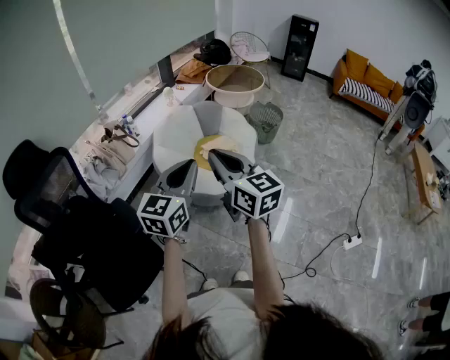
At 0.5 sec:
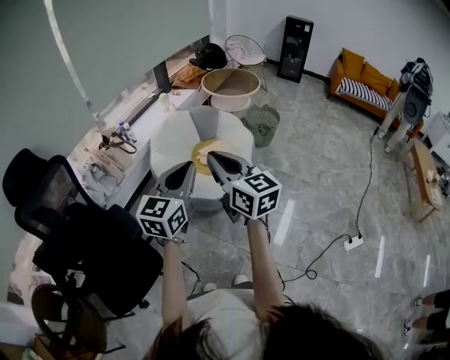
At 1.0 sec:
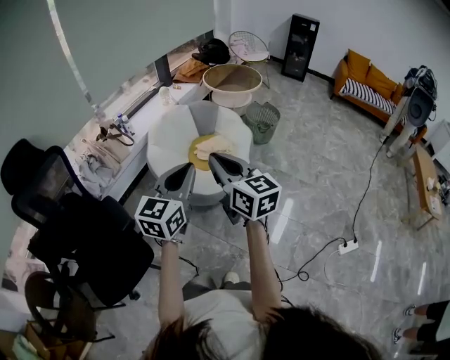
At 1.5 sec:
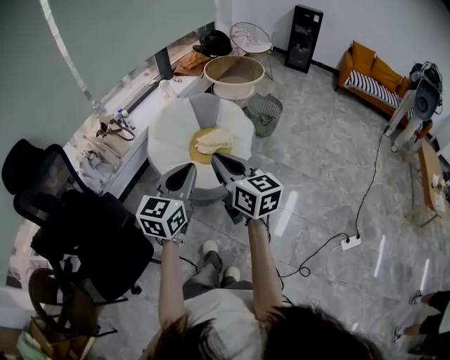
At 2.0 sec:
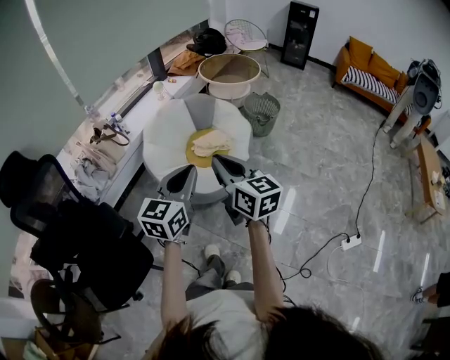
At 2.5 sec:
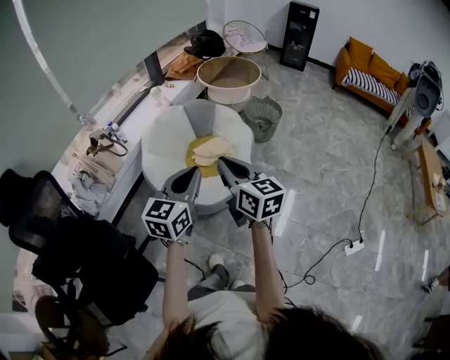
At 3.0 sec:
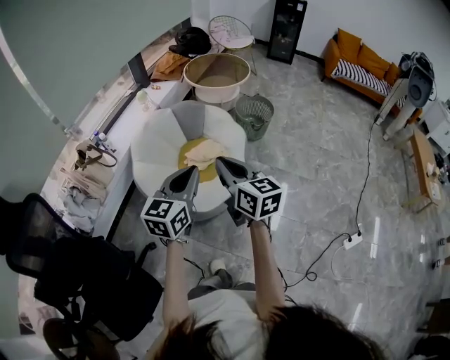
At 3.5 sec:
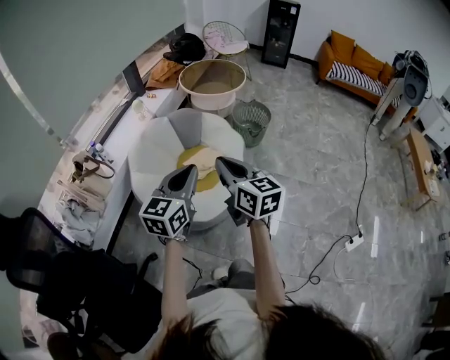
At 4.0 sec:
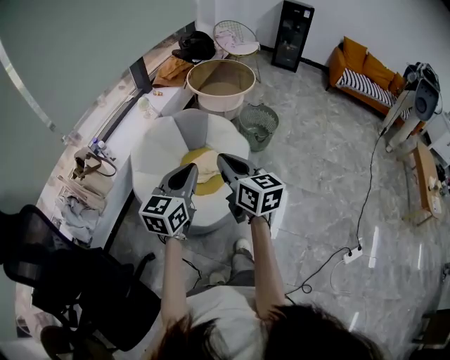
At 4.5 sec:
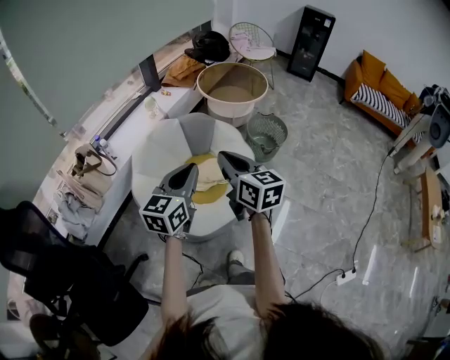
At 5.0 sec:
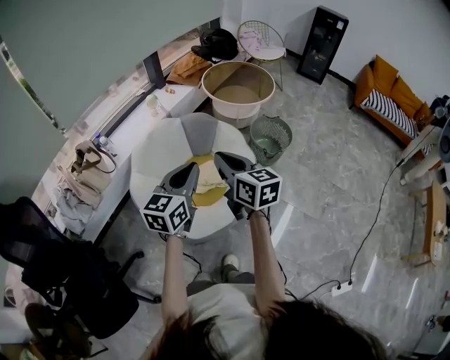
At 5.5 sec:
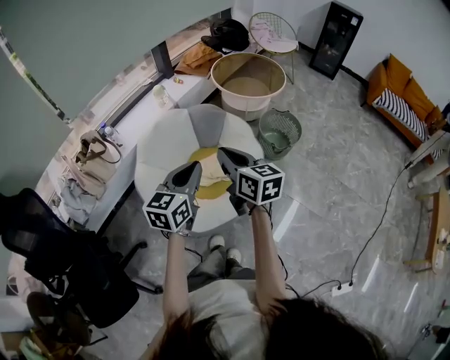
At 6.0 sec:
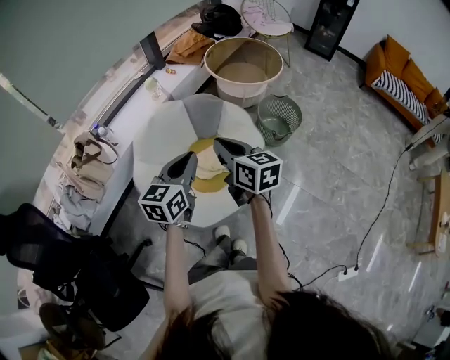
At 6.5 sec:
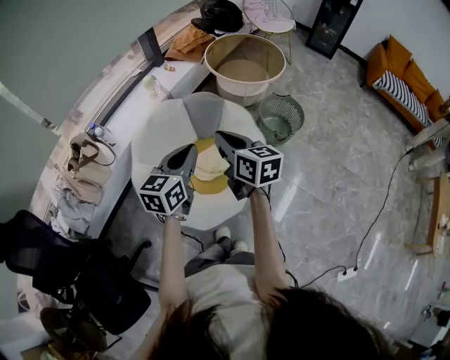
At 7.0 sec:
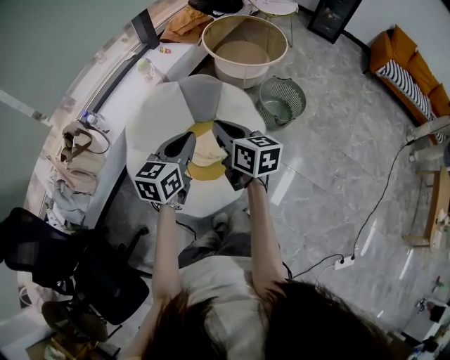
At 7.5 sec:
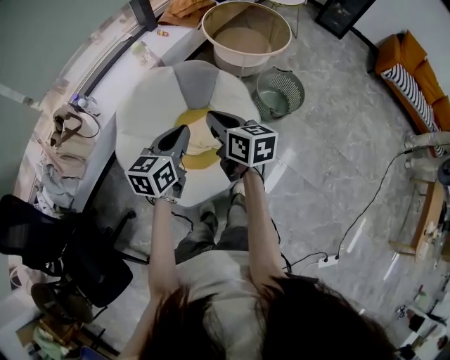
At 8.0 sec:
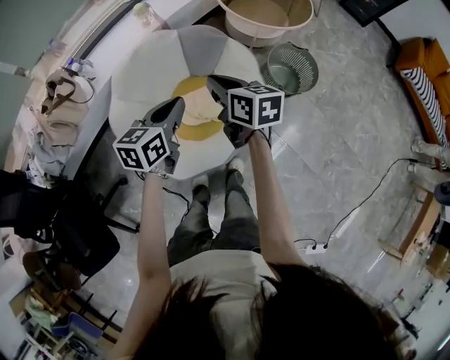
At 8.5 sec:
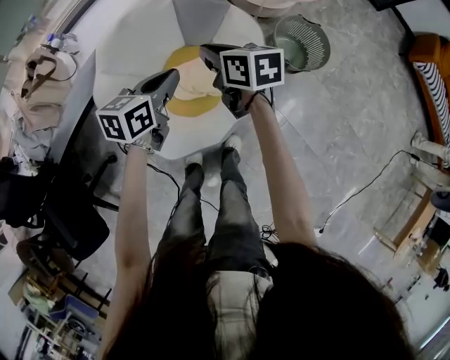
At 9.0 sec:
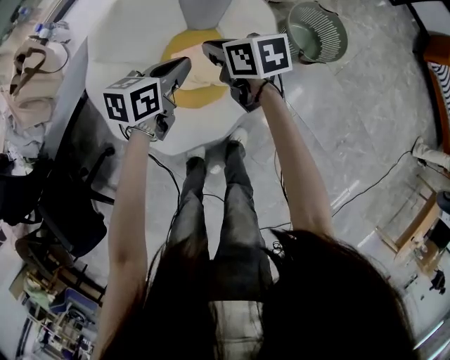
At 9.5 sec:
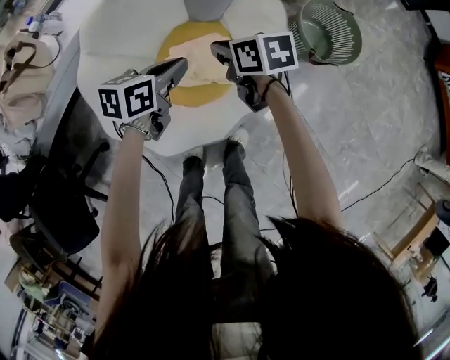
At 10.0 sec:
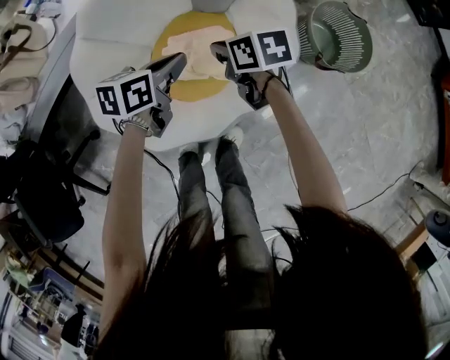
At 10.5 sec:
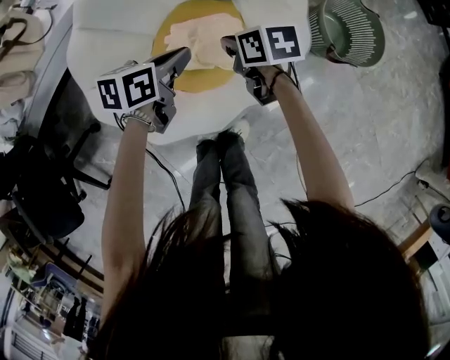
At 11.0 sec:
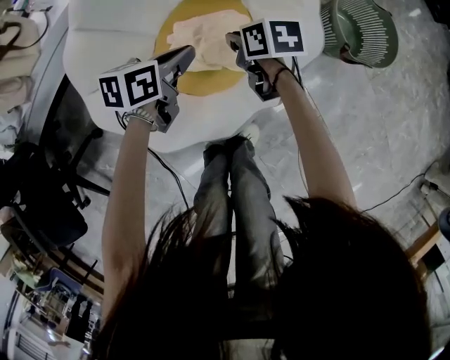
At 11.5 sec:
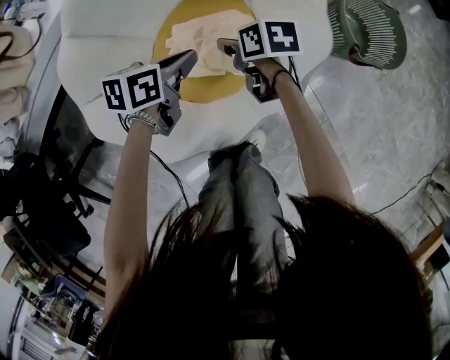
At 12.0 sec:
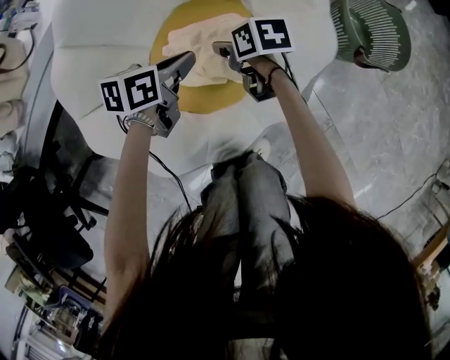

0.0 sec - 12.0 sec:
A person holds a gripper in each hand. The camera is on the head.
0.0 sec - 2.0 sec: The right gripper goes some 15 cm to the right, downward and forward. The left gripper goes approximately 10 cm to the right.
2.0 sec - 4.0 sec: The two grippers go about 25 cm forward.
4.0 sec - 6.0 sec: The grippers both shift forward by roughly 20 cm.
6.0 sec - 8.0 sec: The grippers both shift forward and downward by approximately 15 cm.
8.0 sec - 10.0 sec: Both grippers move downward, some 30 cm. The right gripper turns by some 30 degrees. The left gripper turns by some 20 degrees.
10.0 sec - 12.0 sec: The grippers both shift downward by approximately 20 cm. The right gripper opens up.

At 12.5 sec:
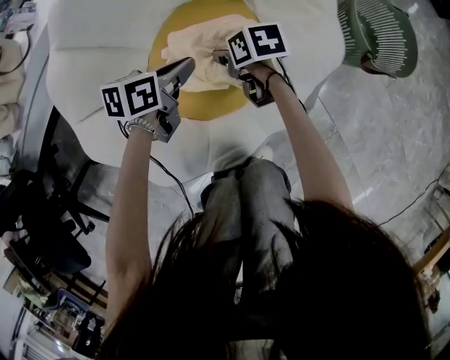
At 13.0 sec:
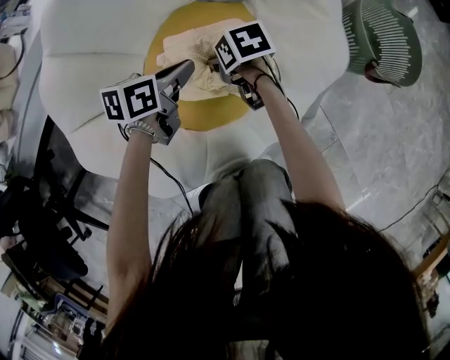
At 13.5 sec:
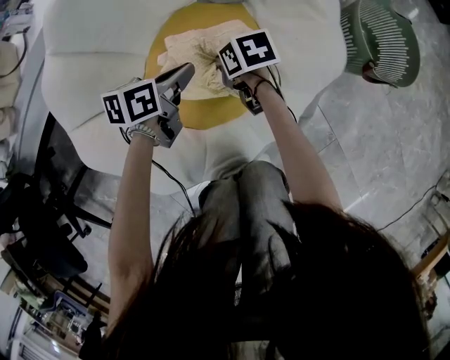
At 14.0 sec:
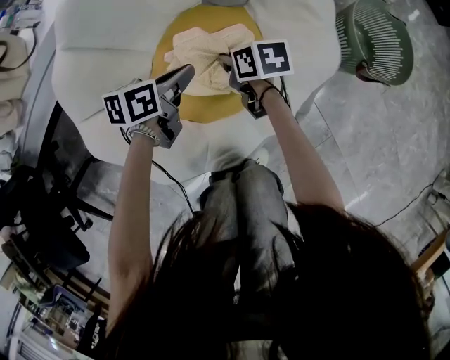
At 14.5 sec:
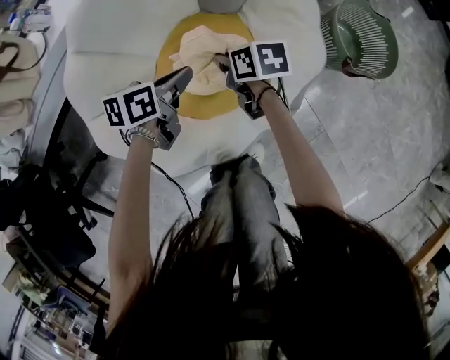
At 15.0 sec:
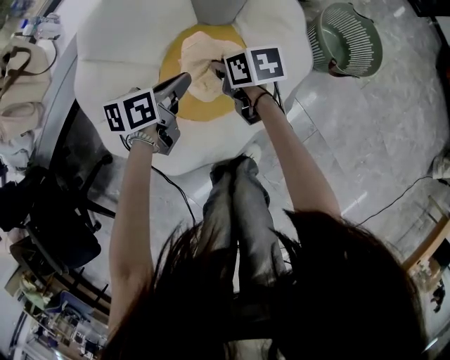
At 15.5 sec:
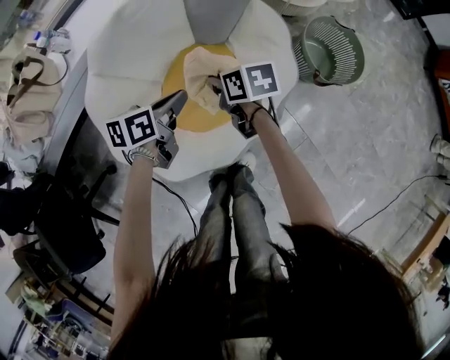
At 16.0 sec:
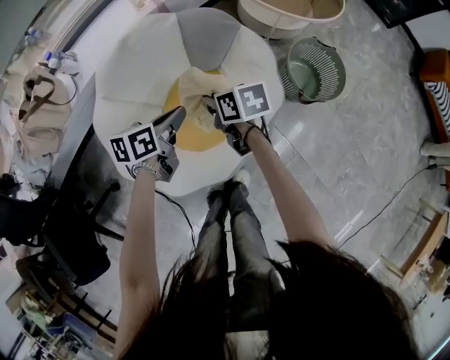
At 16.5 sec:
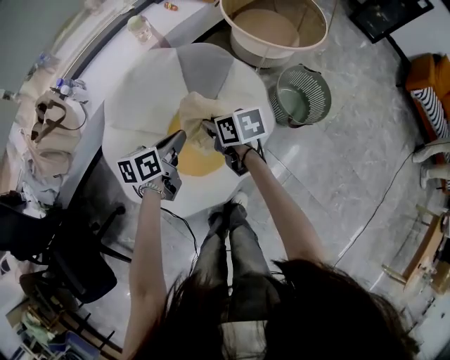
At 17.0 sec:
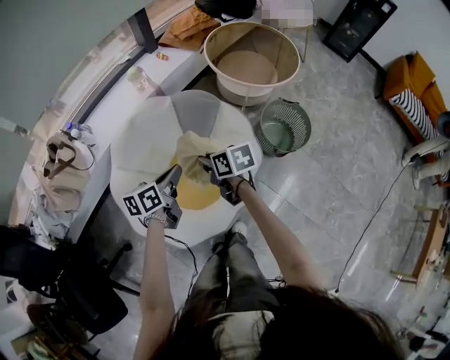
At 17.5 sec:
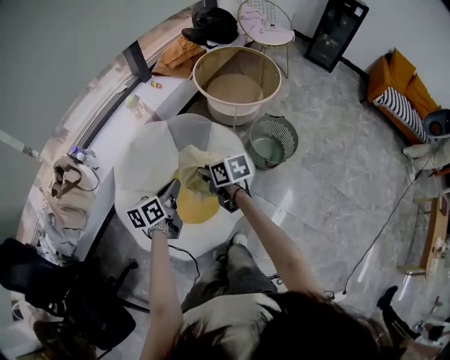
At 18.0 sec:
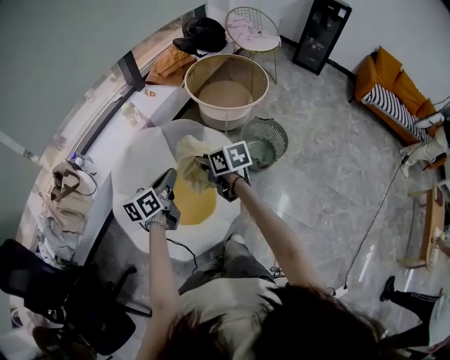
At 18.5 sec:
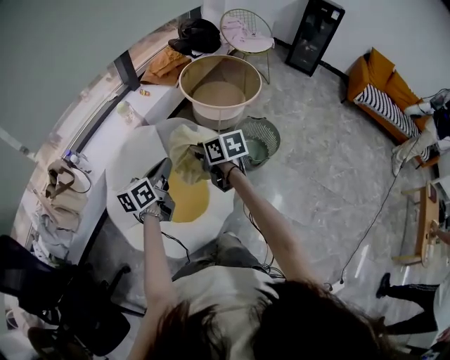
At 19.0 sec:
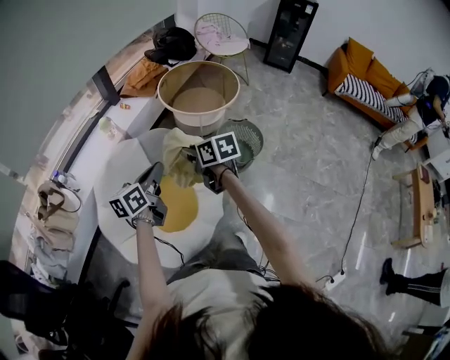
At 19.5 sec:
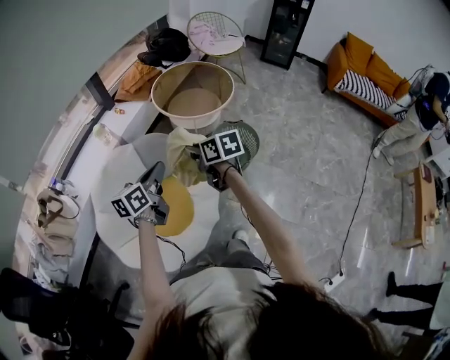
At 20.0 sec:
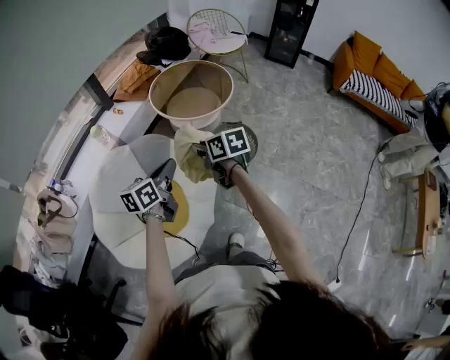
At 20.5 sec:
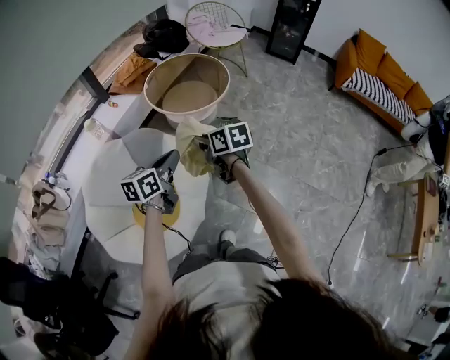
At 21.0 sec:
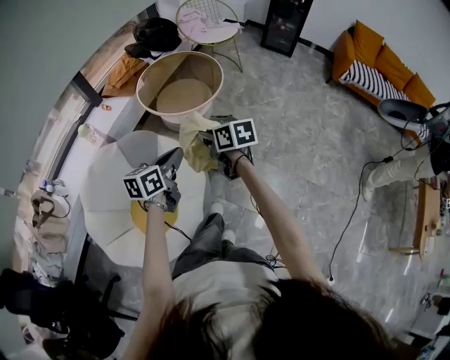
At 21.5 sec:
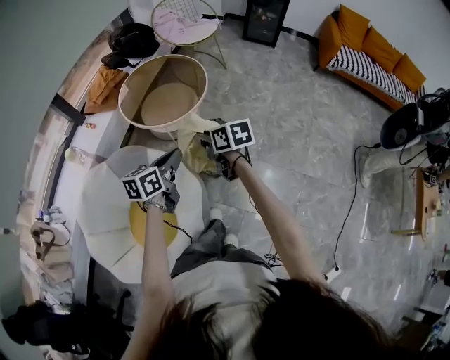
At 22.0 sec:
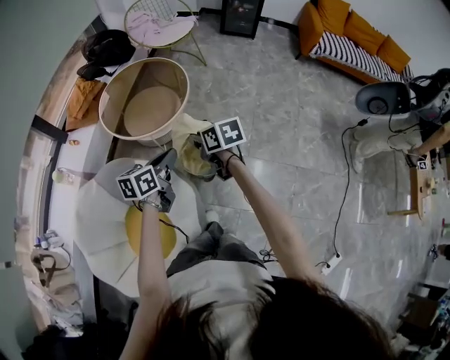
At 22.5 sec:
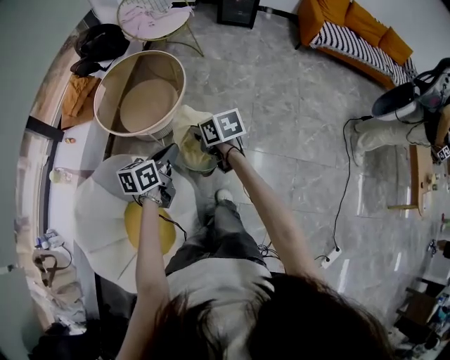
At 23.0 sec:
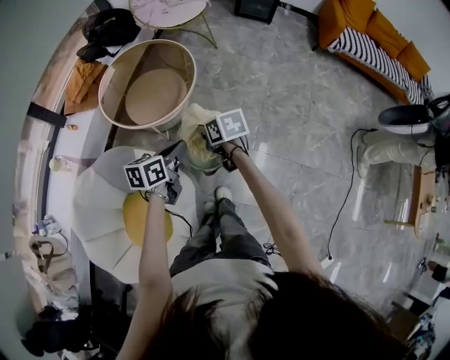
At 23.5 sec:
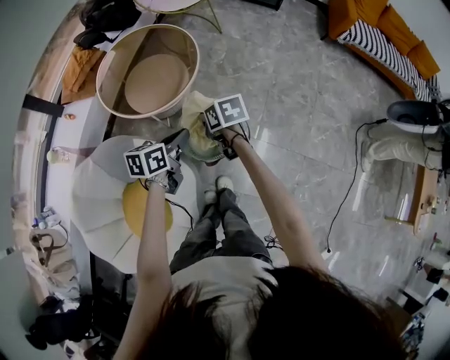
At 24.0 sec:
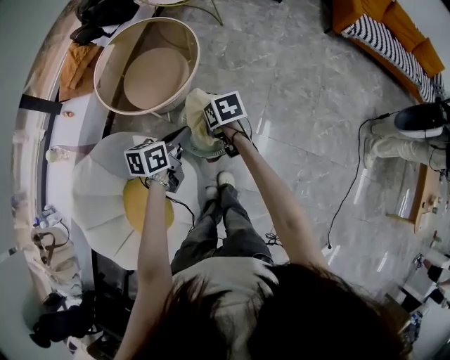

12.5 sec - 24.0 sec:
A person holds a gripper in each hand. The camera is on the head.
12.5 sec - 14.5 sec: The two grippers go about 10 cm upward. The right gripper closes.
14.5 sec - 16.5 sec: Both grippers move upward, about 25 cm.
16.5 sec - 18.5 sec: The two grippers go about 20 cm upward. The left gripper turns by roughly 20 degrees.
18.5 sec - 20.0 sec: Both grippers move to the right, about 20 cm.
20.0 sec - 22.0 sec: The left gripper is displaced forward and to the right by roughly 25 cm, and rotates approximately 20 degrees. The right gripper travels to the right and forward by roughly 25 cm.
22.0 sec - 24.0 sec: Both grippers travel together forward and downward, roughly 15 cm.

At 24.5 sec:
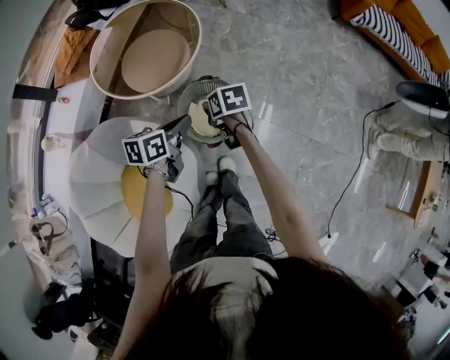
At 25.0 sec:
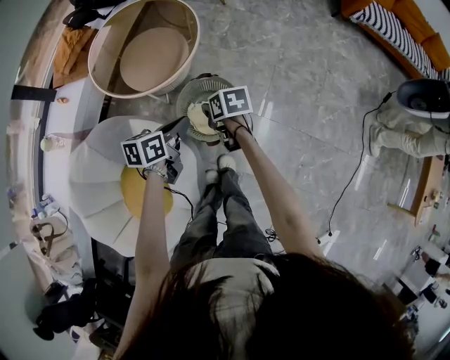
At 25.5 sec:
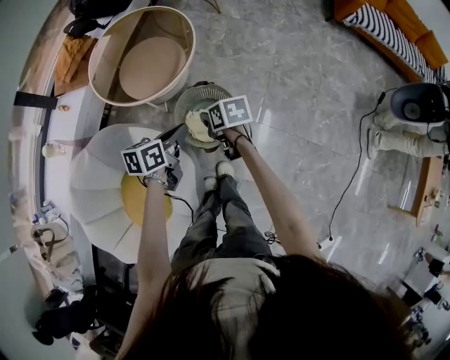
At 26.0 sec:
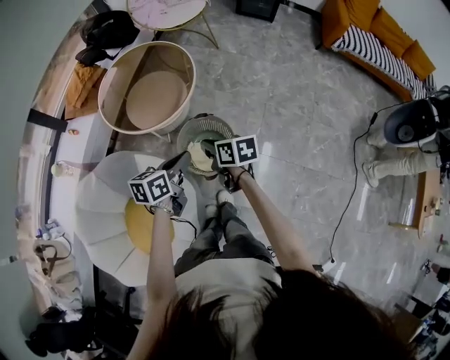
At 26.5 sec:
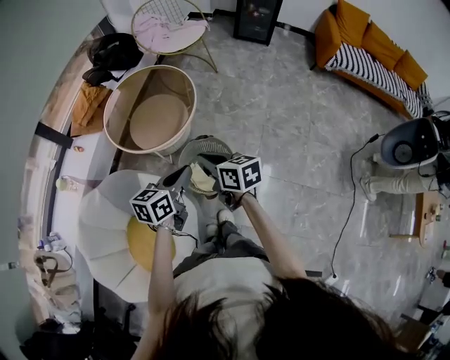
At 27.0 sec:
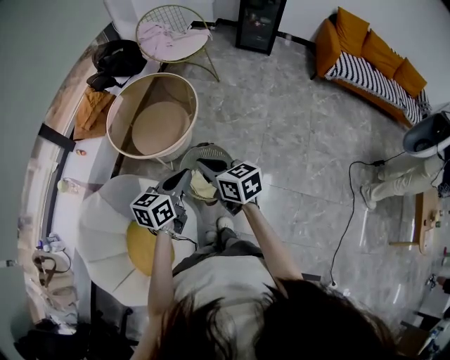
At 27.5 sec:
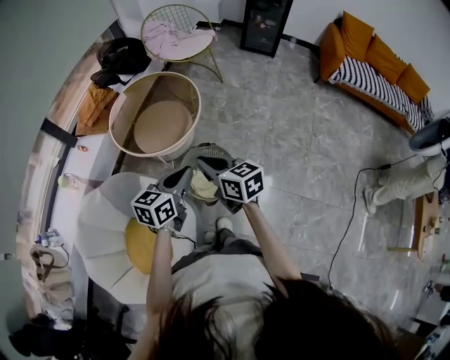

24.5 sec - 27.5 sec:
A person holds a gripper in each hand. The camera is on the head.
24.5 sec - 26.0 sec: The left gripper heads upward, covering some 5 cm, while the right gripper goes some 10 cm upward and backward.
26.0 sec - 27.5 sec: The left gripper shifts roughly 10 cm upward, and rotates about 20 degrees. Meanwhile the right gripper goes approximately 15 cm upward, and changes its angle by about 30 degrees.
